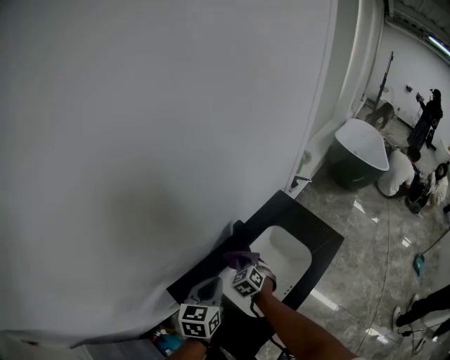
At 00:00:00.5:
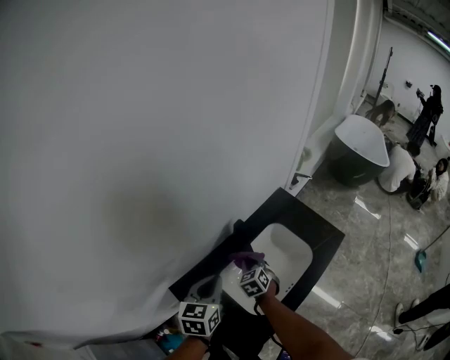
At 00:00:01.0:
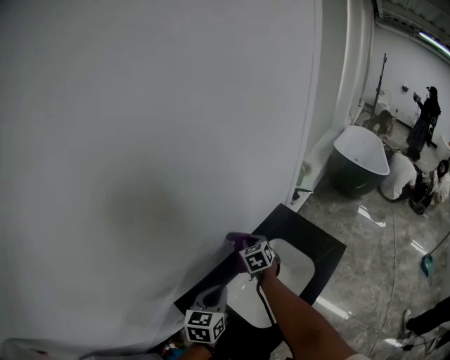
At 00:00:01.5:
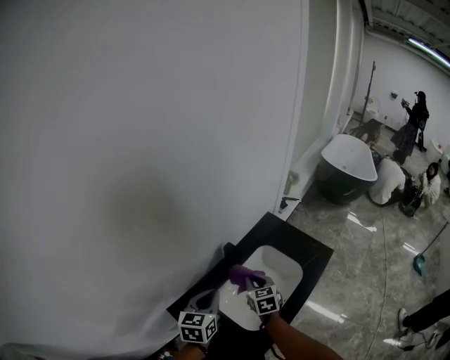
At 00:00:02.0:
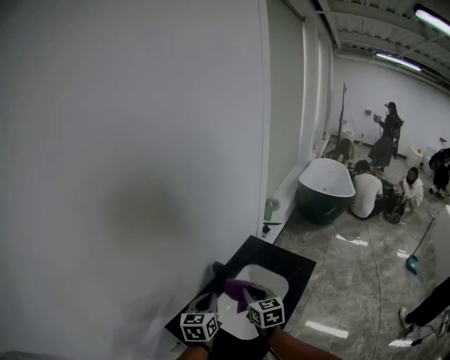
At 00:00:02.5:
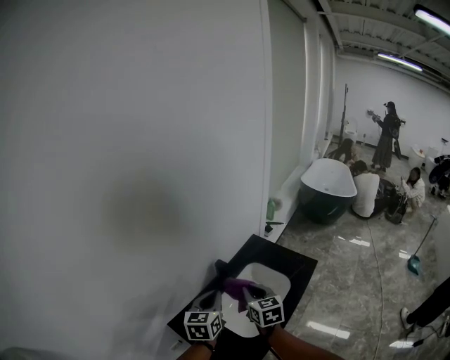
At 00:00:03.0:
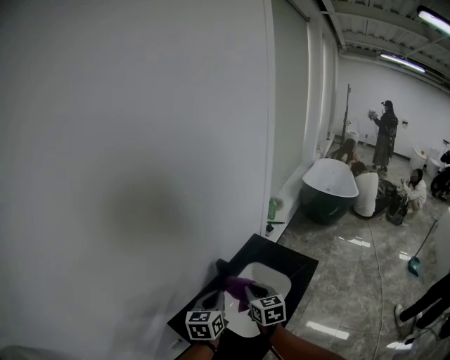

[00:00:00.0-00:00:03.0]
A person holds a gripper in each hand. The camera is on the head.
00:00:00.0 to 00:00:01.5: The right gripper shifts roughly 10 cm upward and to the right, moves approximately 10 cm forward and comes back, and rotates some 30 degrees.
00:00:01.5 to 00:00:03.0: The right gripper shifts some 15 cm upward and backward; the left gripper shifts approximately 5 cm upward.

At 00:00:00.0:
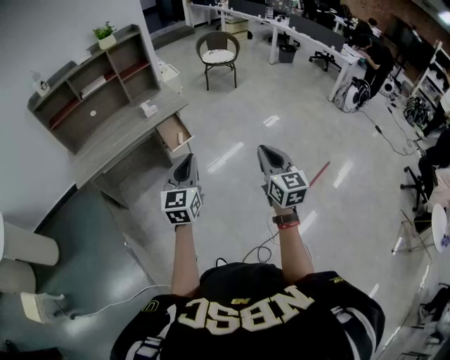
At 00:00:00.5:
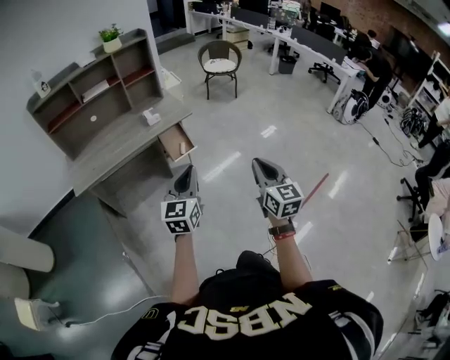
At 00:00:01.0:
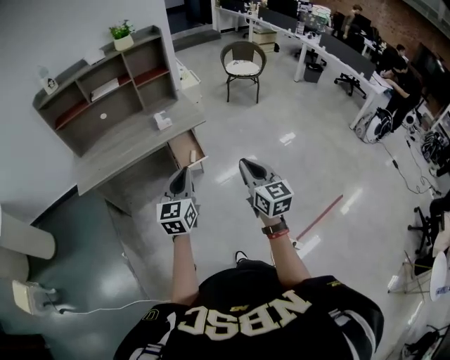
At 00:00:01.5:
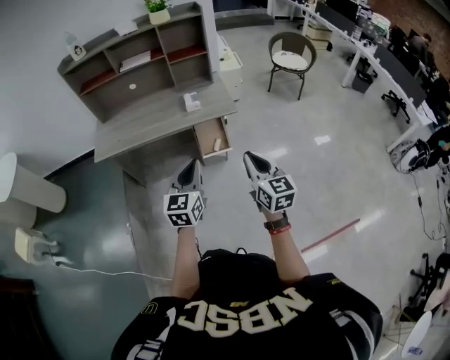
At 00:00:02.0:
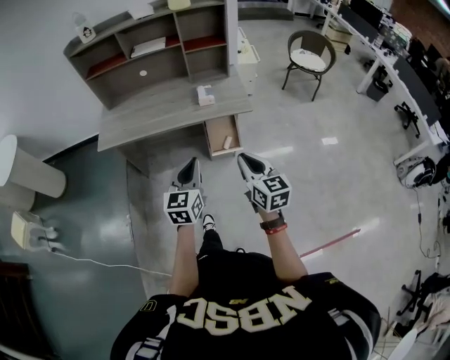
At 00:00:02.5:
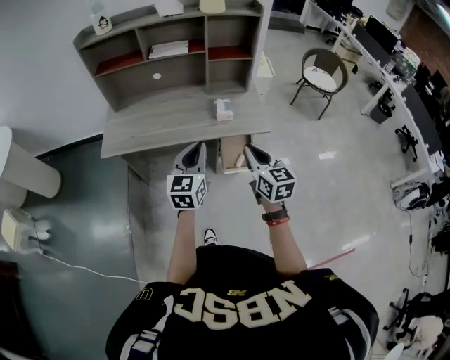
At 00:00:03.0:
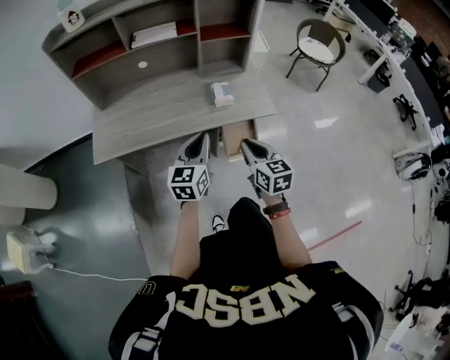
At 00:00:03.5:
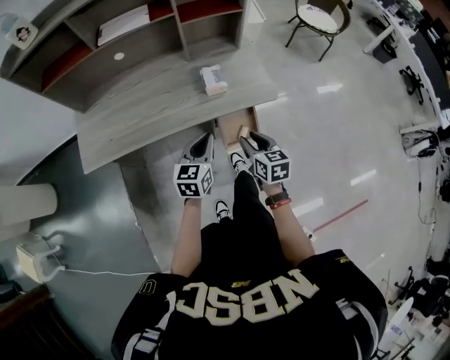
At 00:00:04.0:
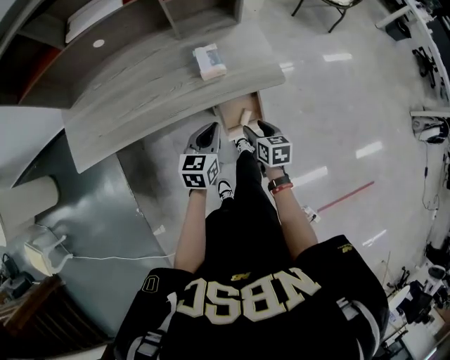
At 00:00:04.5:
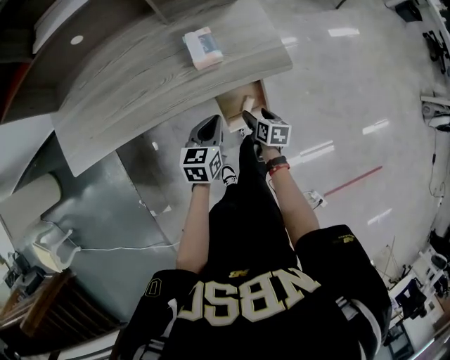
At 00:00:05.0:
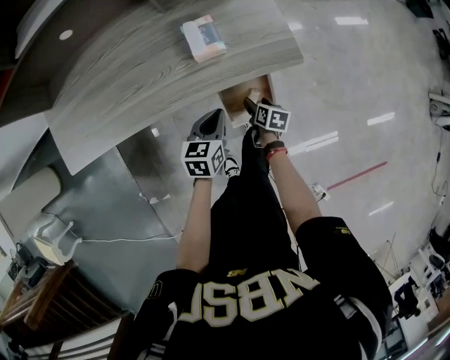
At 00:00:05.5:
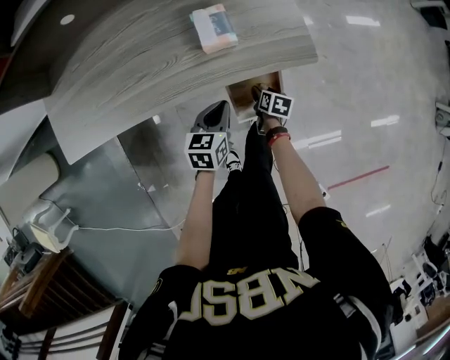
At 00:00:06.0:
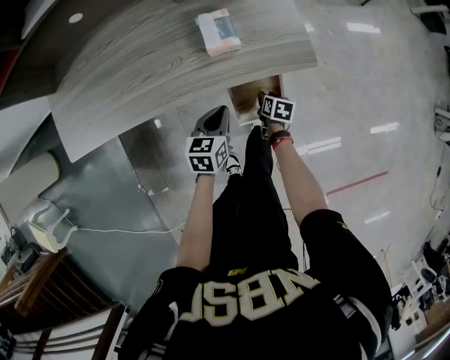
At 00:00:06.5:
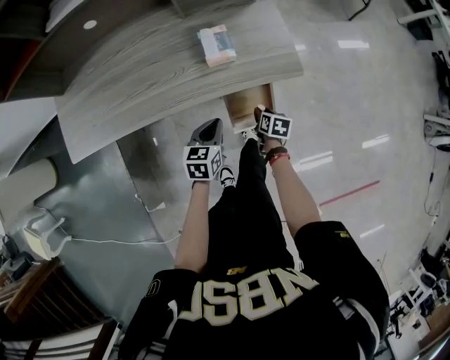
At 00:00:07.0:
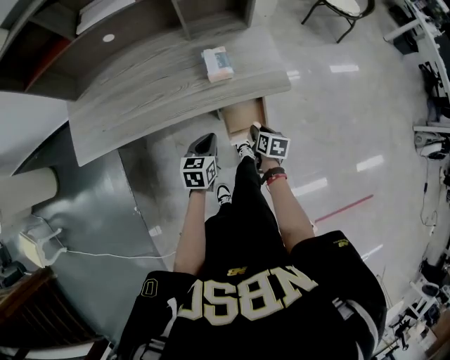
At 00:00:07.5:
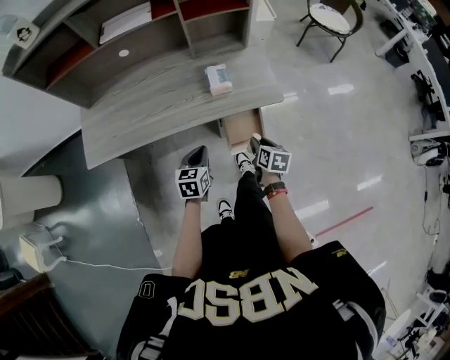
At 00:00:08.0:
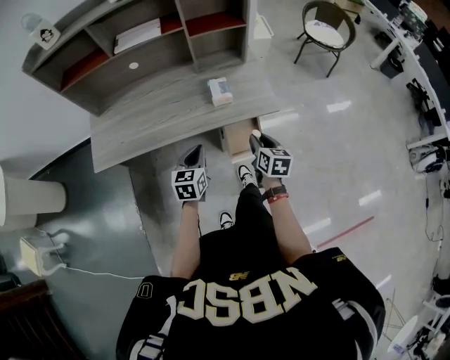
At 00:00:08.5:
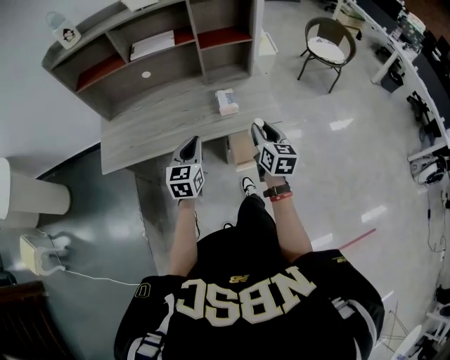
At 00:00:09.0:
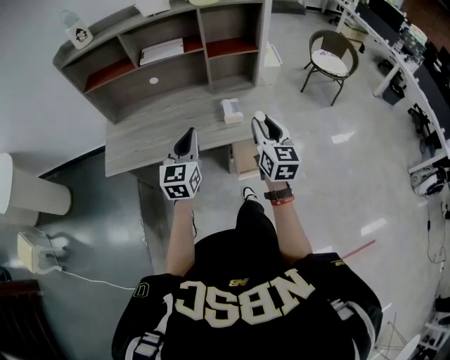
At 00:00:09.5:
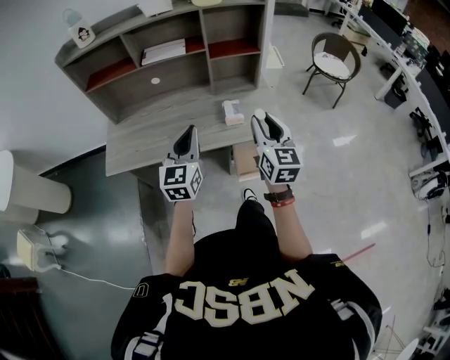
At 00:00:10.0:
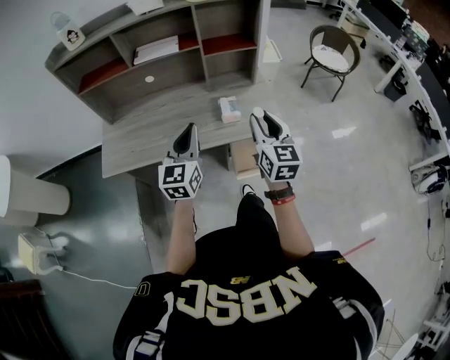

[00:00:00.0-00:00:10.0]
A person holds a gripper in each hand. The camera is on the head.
00:00:00.0 to 00:00:02.0: The left gripper shifts by roughly 25 cm, and rotates some 30 degrees; the right gripper shifts by some 35 cm, and rotates approximately 40 degrees.
00:00:02.0 to 00:00:04.0: The right gripper travels downward and forward by approximately 40 cm, tilts its fingers roughly 30 degrees downward, and opens its fingers, while the left gripper travels forward and downward by approximately 35 cm, and changes its angle by roughly 30 degrees.
00:00:04.0 to 00:00:06.0: The left gripper goes about 15 cm downward, while the right gripper goes some 20 cm downward, and changes its angle by about 20 degrees.
00:00:06.0 to 00:00:08.0: The right gripper is displaced upward by roughly 30 cm, and turns by approximately 30 degrees. The left gripper heads upward, backward and to the left, covering about 20 cm.
00:00:08.0 to 00:00:10.0: Both grippers travel together upward, some 20 cm. The right gripper swivels roughly 30 degrees, while the left gripper changes its angle by roughly 30 degrees.

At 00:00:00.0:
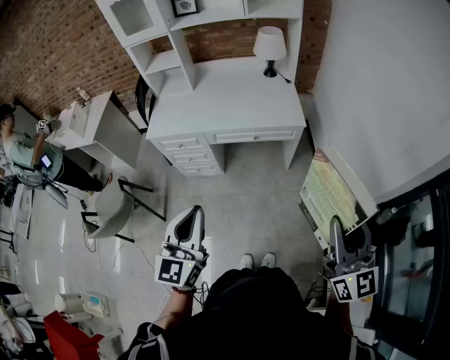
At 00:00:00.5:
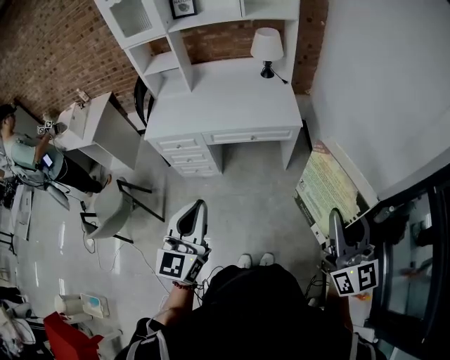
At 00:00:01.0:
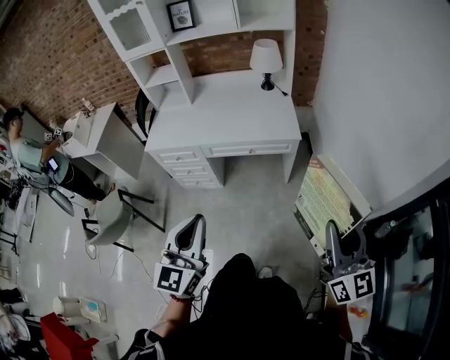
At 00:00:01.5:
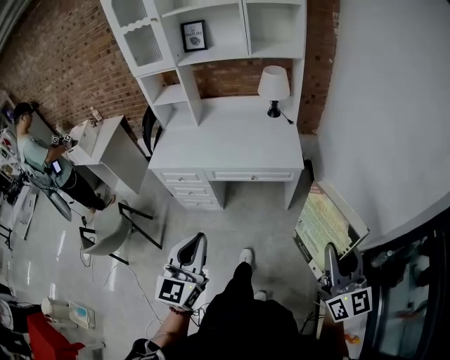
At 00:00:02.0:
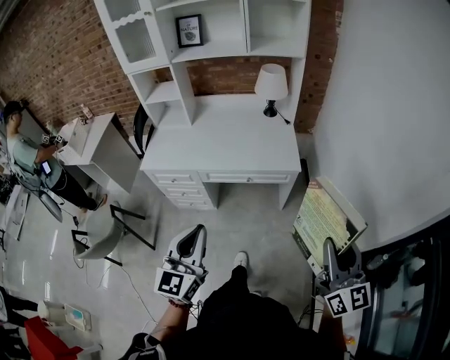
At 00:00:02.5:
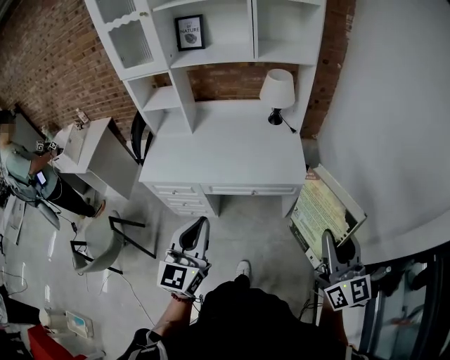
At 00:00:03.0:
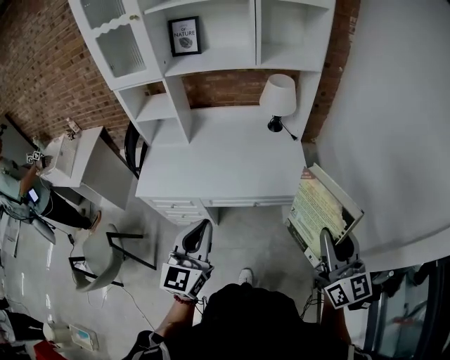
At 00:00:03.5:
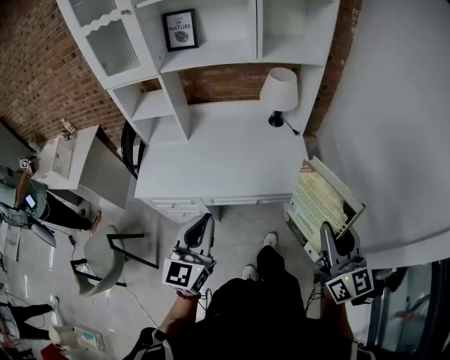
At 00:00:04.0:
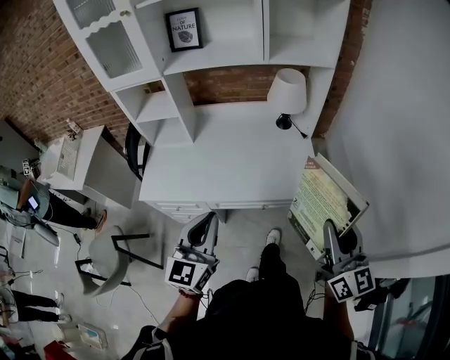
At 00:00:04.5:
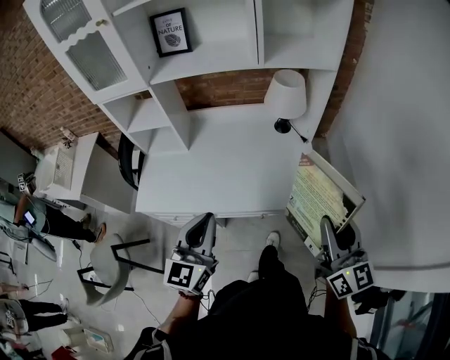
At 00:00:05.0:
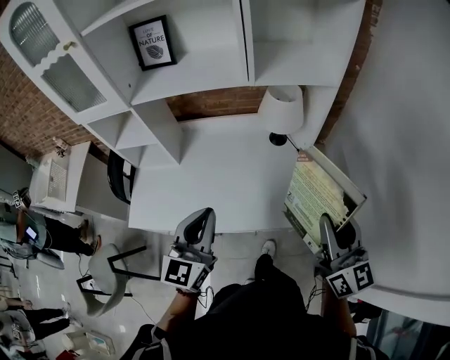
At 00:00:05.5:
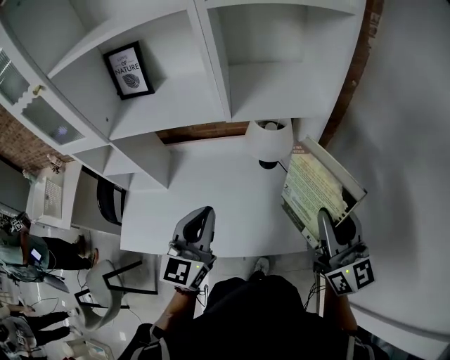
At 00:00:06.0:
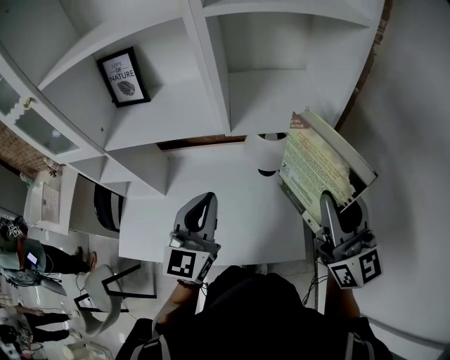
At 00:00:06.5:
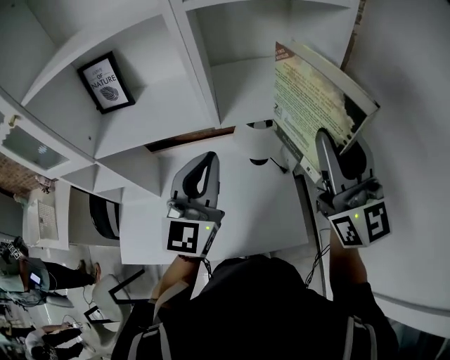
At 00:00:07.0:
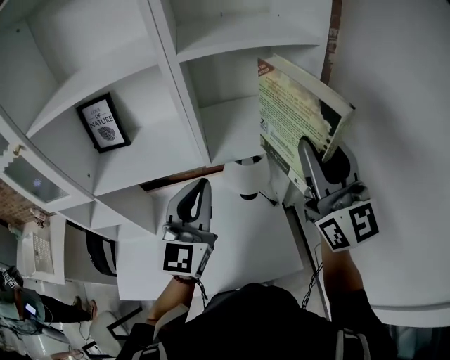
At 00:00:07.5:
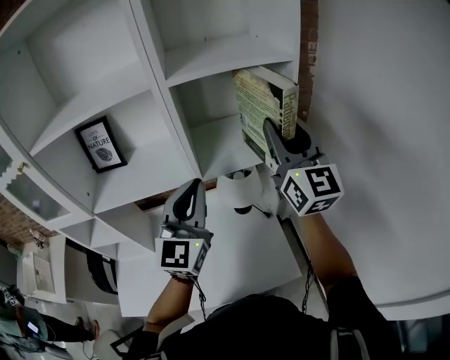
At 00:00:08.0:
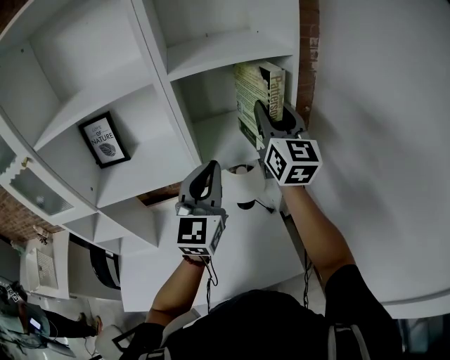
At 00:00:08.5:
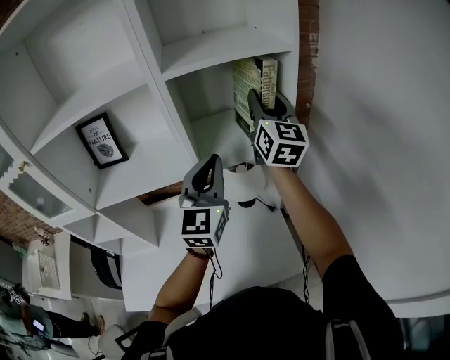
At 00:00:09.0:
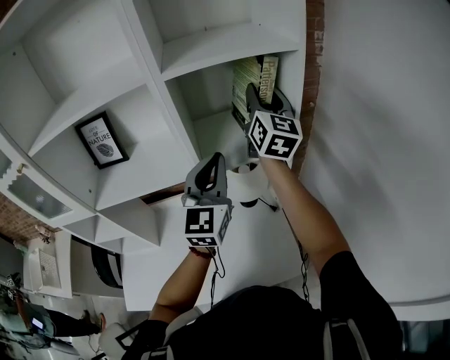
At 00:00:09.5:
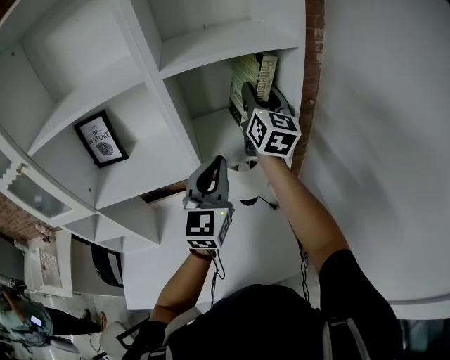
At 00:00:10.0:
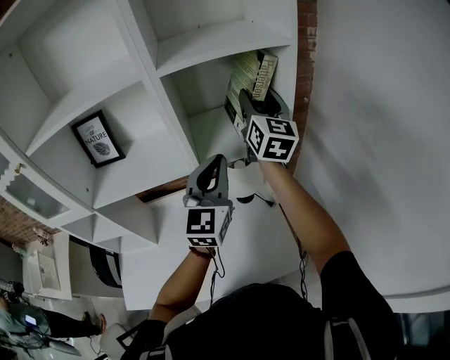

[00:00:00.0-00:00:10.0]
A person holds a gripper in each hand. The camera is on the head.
00:00:00.0 to 00:00:02.0: Both grippers move forward, about 10 cm.
00:00:02.0 to 00:00:04.0: The left gripper goes about 25 cm forward, while the right gripper heads forward and to the left, covering about 30 cm.
00:00:04.0 to 00:00:06.0: The two grippers go roughly 35 cm forward.
00:00:06.0 to 00:00:08.0: The left gripper heads upward, forward and to the right, covering some 15 cm; the right gripper shifts roughly 20 cm forward and upward.
00:00:08.0 to 00:00:10.0: The right gripper travels forward by roughly 5 cm.

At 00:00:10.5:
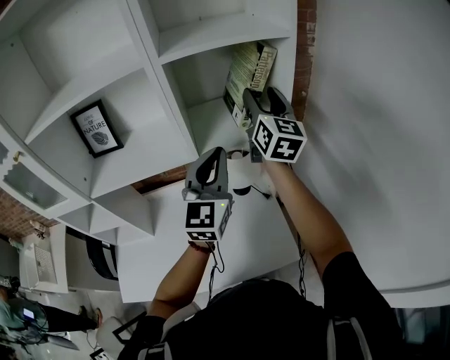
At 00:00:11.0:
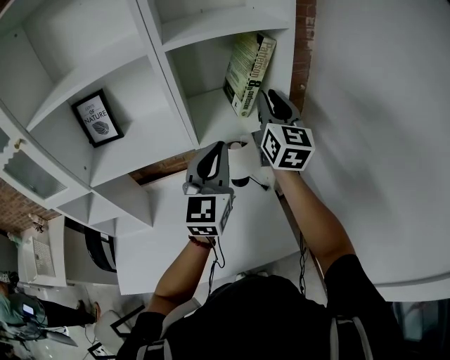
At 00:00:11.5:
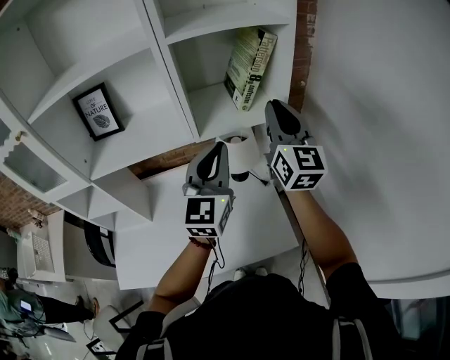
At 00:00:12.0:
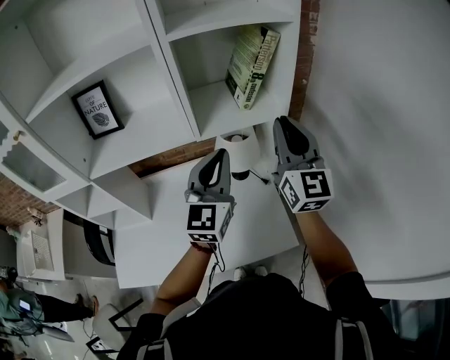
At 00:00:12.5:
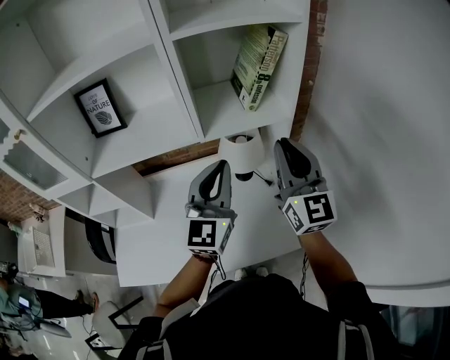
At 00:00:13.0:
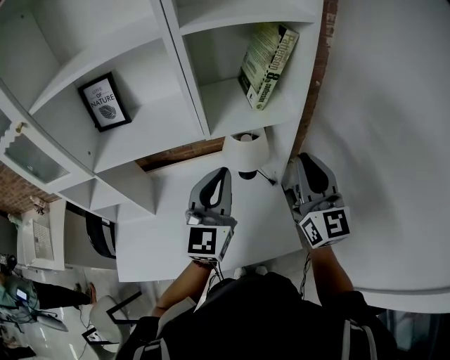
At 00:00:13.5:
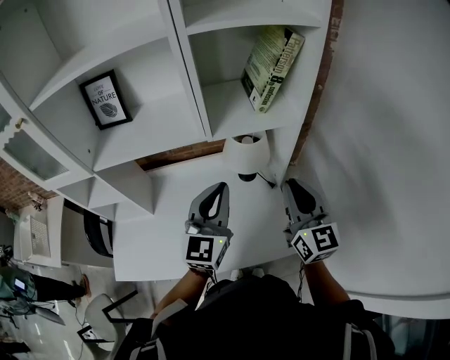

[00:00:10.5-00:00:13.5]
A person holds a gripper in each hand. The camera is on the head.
00:00:10.5 to 00:00:12.0: The right gripper moves backward, roughly 15 cm, and closes; the left gripper shifts by about 5 cm.
00:00:12.0 to 00:00:13.5: The left gripper moves downward, about 5 cm; the right gripper travels downward and backward by roughly 15 cm.
